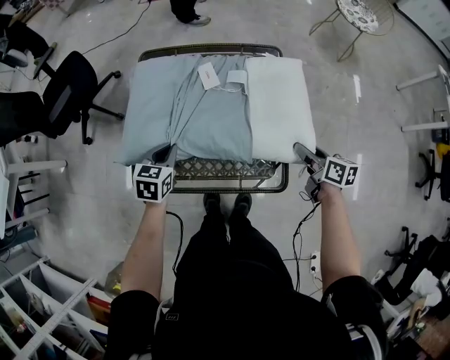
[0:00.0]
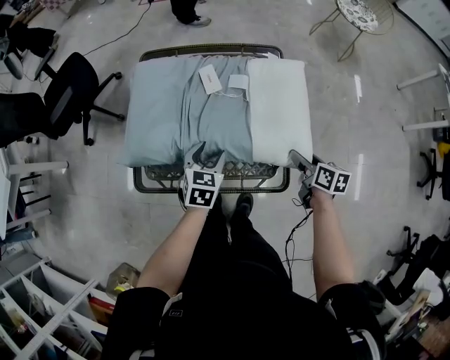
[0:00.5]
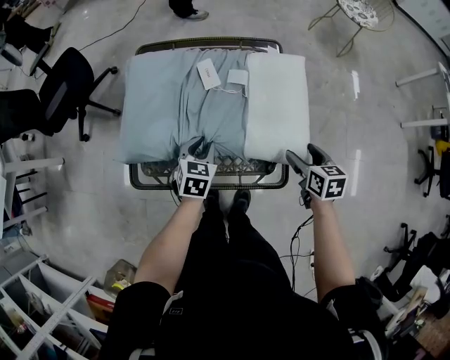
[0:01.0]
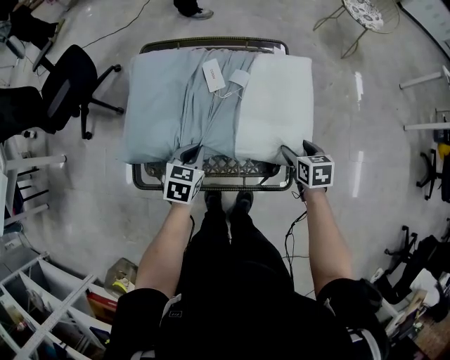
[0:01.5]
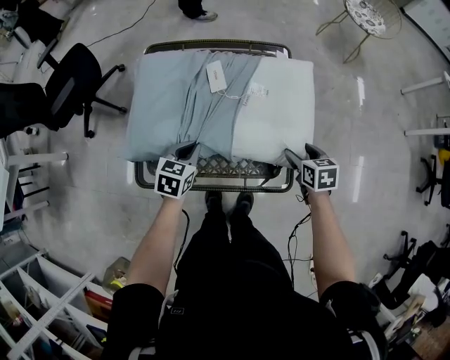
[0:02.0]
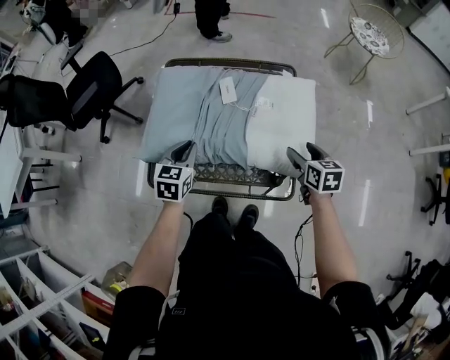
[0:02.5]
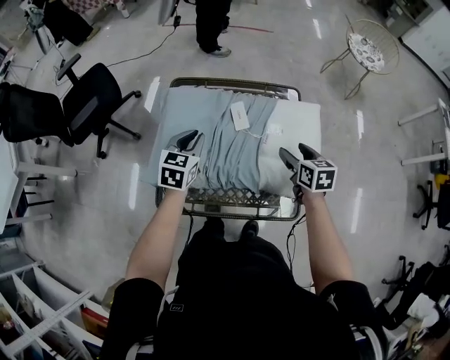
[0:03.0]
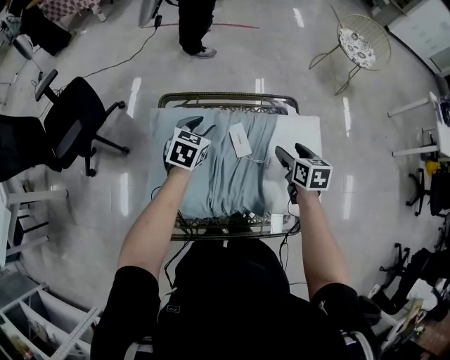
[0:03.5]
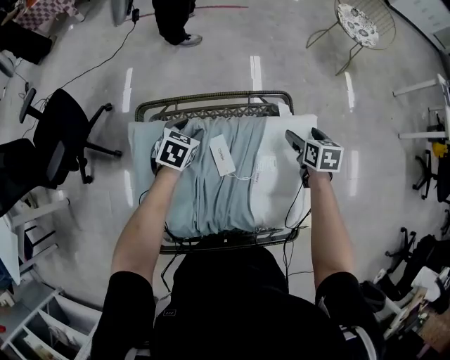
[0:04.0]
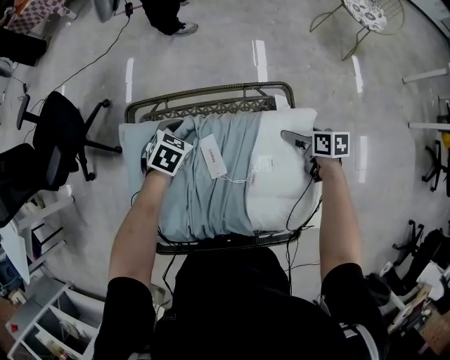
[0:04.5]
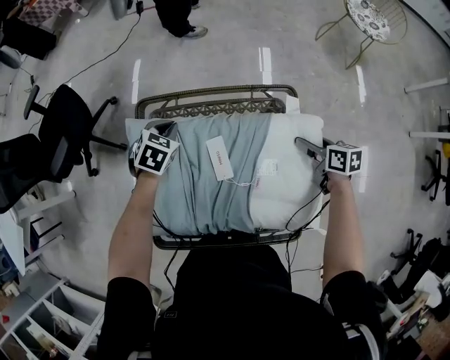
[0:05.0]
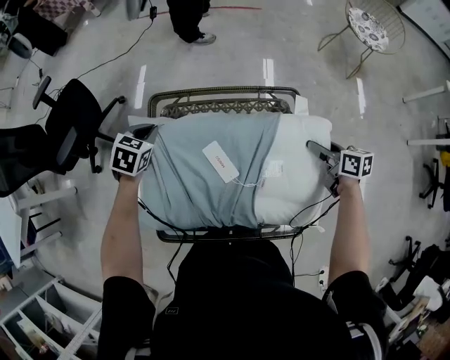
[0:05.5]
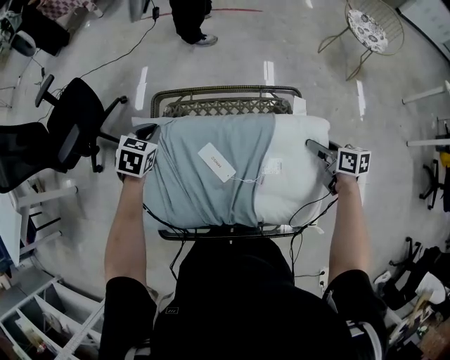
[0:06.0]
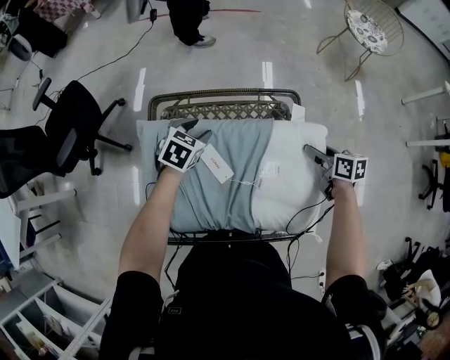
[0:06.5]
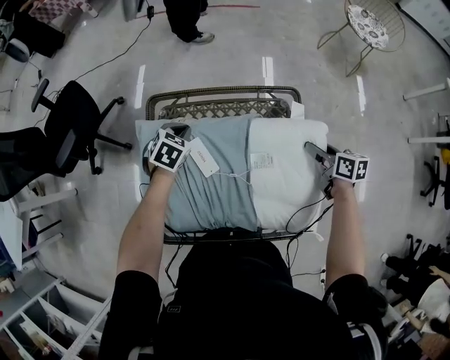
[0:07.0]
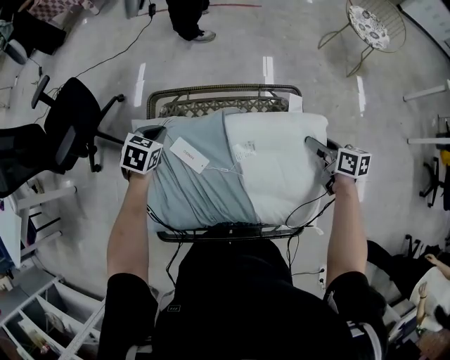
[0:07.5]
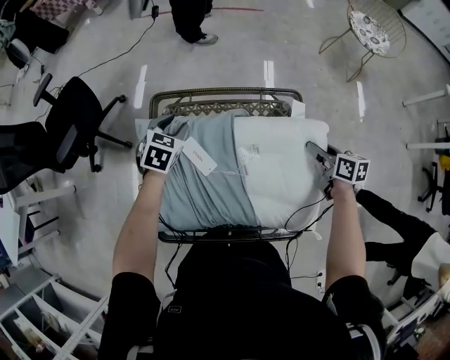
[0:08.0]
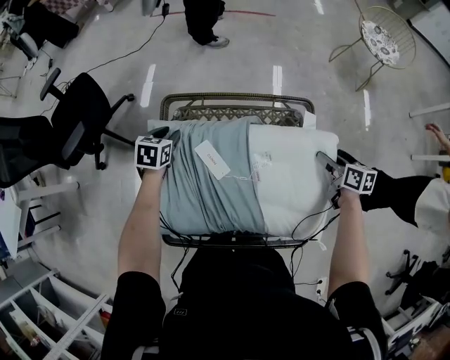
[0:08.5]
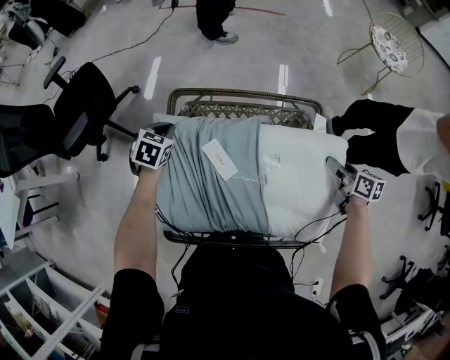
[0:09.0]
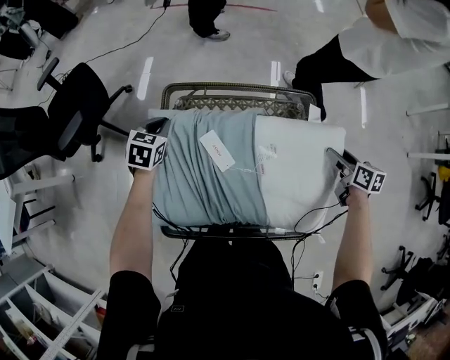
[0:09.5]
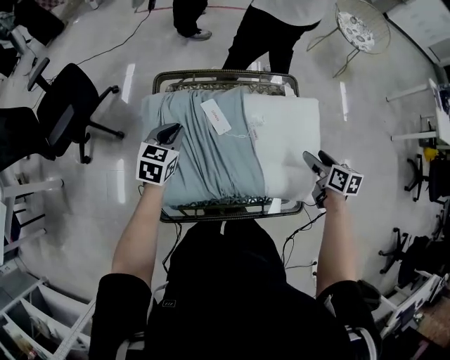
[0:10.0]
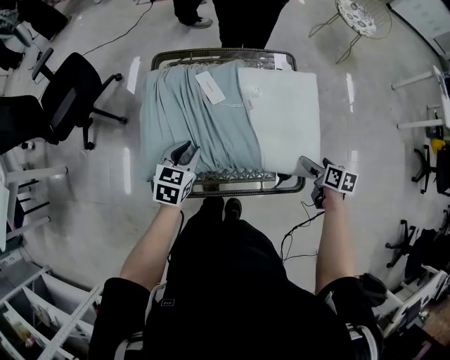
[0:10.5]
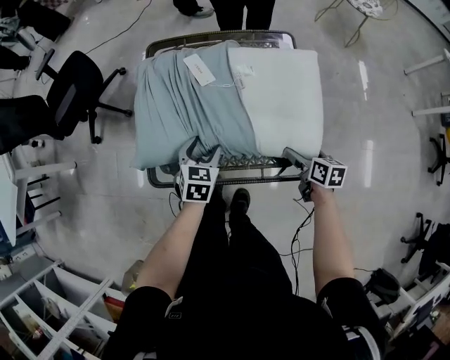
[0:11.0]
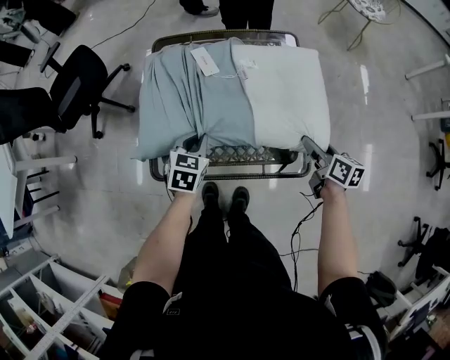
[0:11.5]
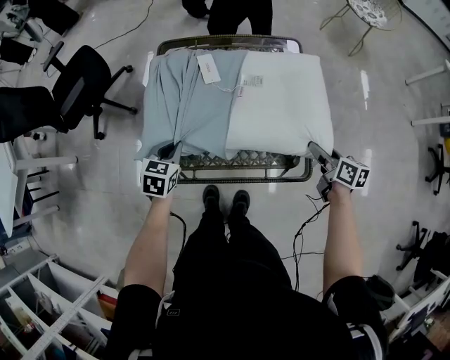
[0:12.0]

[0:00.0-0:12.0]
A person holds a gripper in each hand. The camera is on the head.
0:00.0 to 0:02.0: The left gripper is displaced to the right by approximately 5 cm, and opens, then closes once more. Meanwhile the right gripper ends up about 5 cm from where it was, and rotates some 30 degrees.
0:02.0 to 0:04.0: The two grippers go some 30 cm forward. The left gripper opens up.
0:04.0 to 0:06.0: The left gripper ends up roughly 20 cm from where it was, and closes. The right gripper travels downward and back again, roughly 5 cm each way, rotates some 30 degrees, and closes.
0:06.0 to 0:08.0: The left gripper moves left and right over approximately 15 cm, changing direction 2 times, and opens up.
0:08.0 to 0:10.0: Both grippers move backward, approximately 10 cm. The left gripper closes its fingers. The right gripper opens up.
0:10.0 to 0:12.0: The left gripper heads backward, covering approximately 20 cm, and opens and closes again. Meanwhile the right gripper shifts some 10 cm backward.

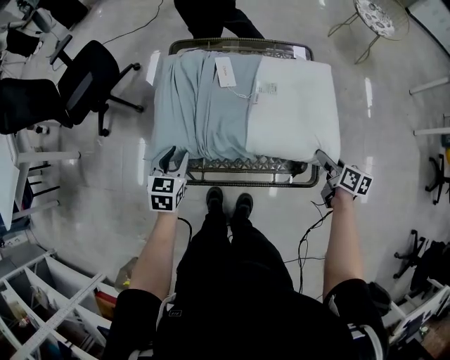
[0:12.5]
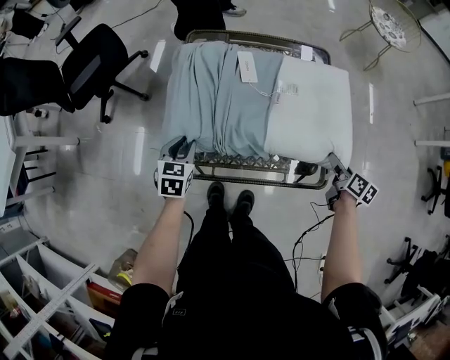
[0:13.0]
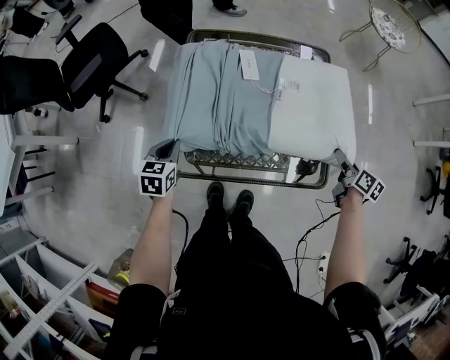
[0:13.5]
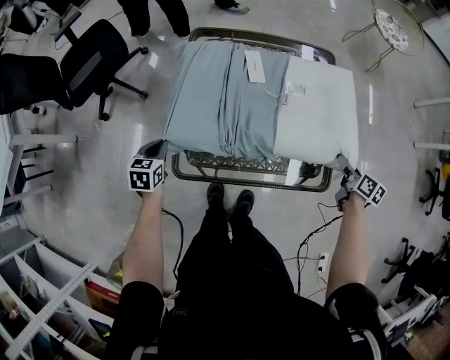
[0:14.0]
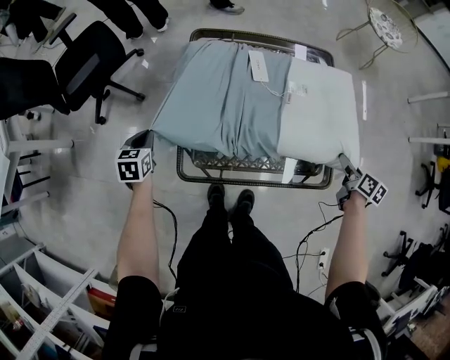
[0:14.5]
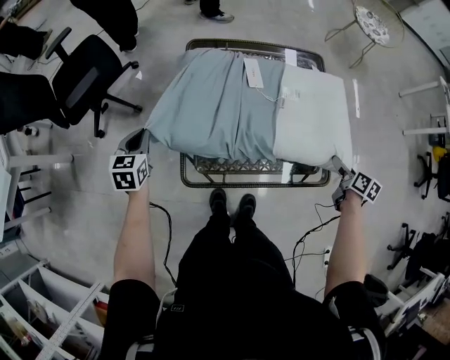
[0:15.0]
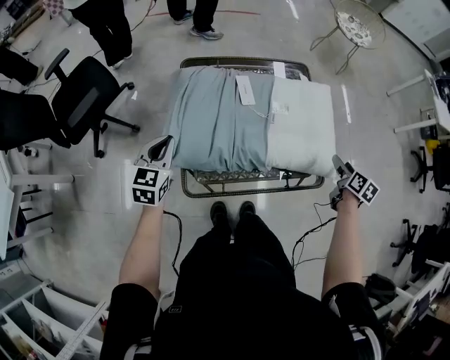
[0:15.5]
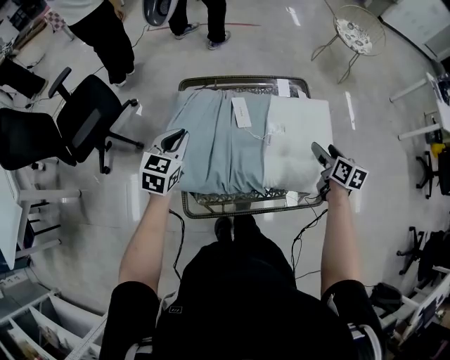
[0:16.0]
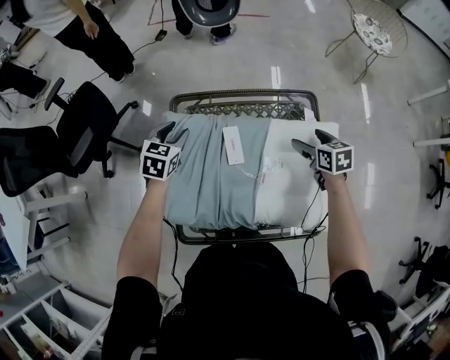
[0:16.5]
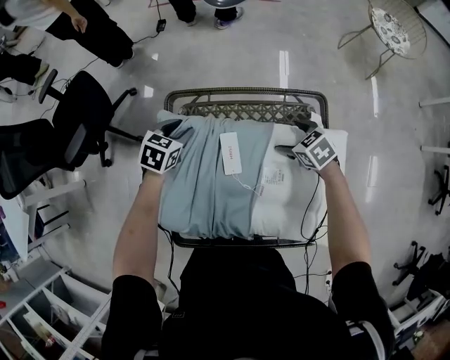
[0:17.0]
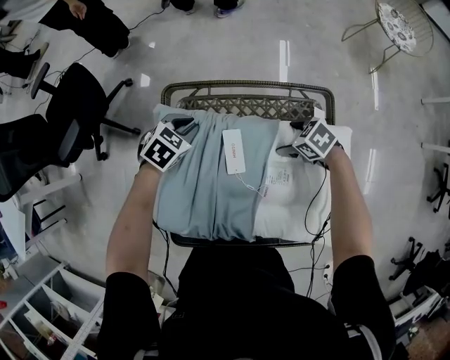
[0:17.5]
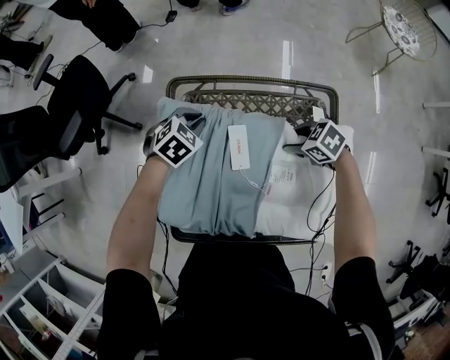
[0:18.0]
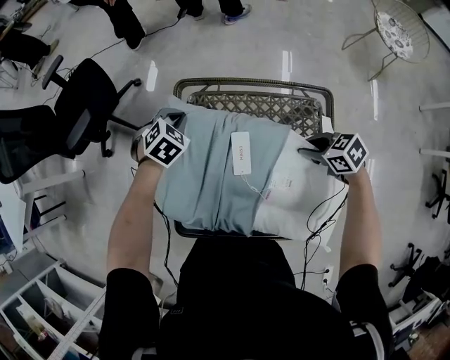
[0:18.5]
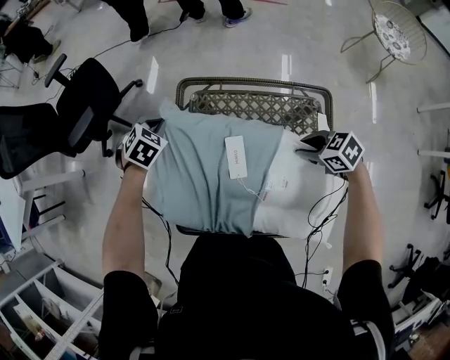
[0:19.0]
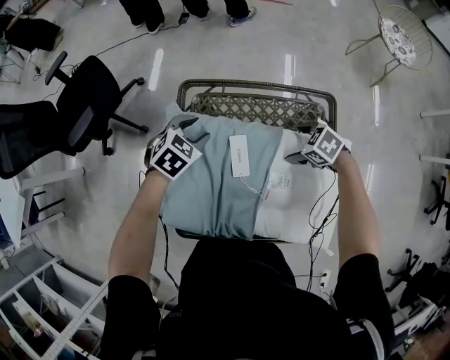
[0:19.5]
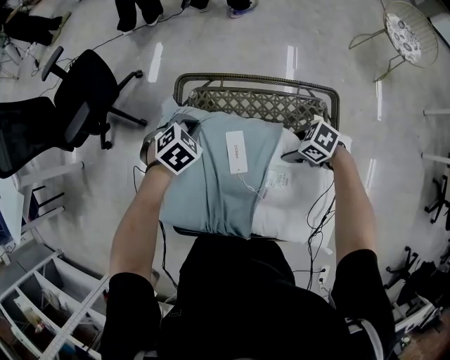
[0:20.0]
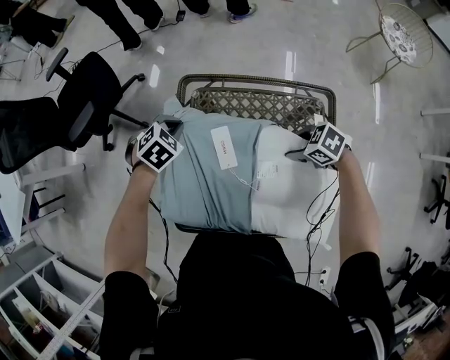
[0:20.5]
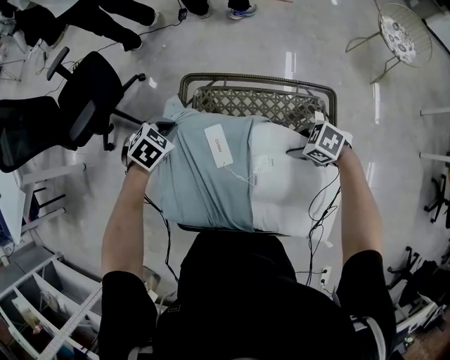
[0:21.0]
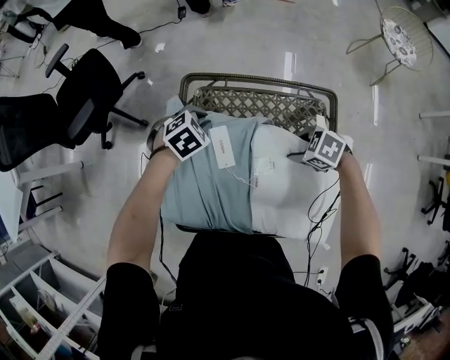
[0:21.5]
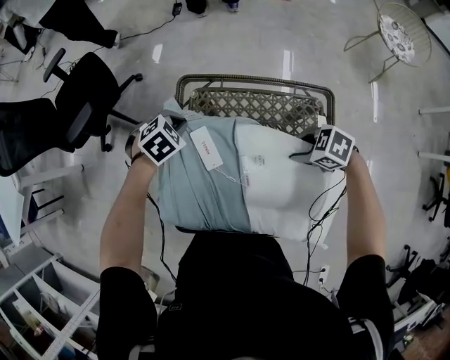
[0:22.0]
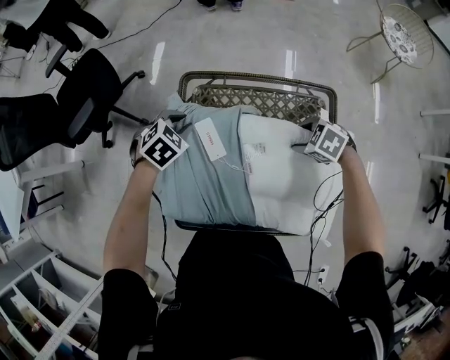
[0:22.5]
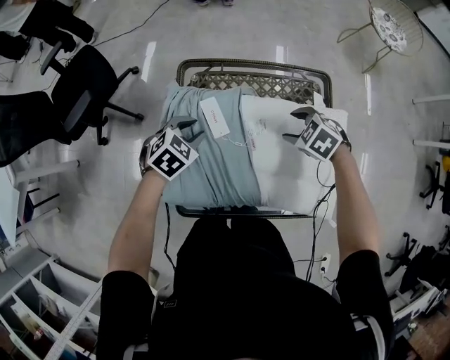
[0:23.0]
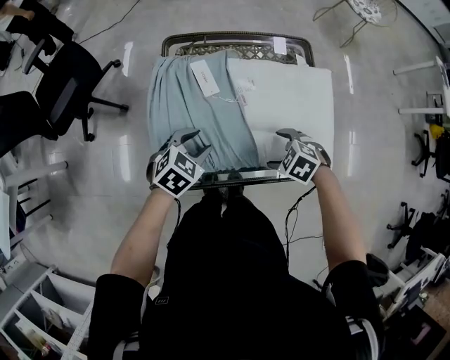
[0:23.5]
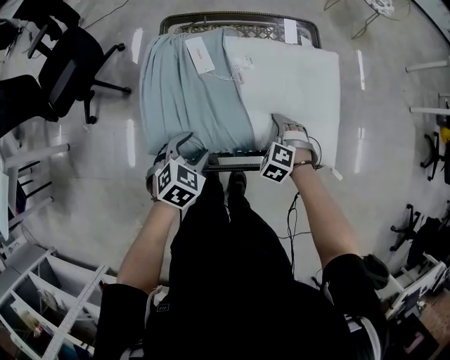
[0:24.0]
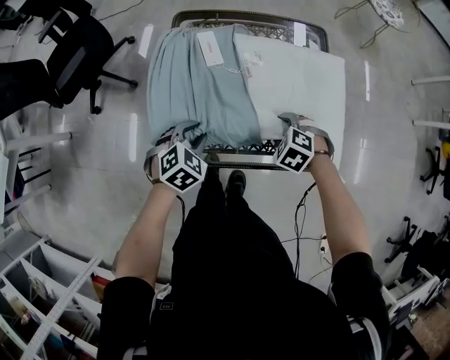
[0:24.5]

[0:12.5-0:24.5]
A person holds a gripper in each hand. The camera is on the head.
0:12.5 to 0:14.5: The left gripper moves to the left, approximately 20 cm, and closes its fingers.
0:14.5 to 0:16.5: The left gripper travels forward and to the right by roughly 30 cm, rotates approximately 20 degrees, and opens, while the right gripper heads forward and to the left, covering about 30 cm, rotates about 30 degrees, and opens.
0:16.5 to 0:18.5: The right gripper moves roughly 10 cm downward and comes back, rotates some 40 degrees, and closes. The left gripper swivels some 30 degrees, and closes its fingers.
0:18.5 to 0:20.5: The left gripper opens and closes again. The right gripper opens, then closes once more.
0:22.5 to 0:24.5: The right gripper travels downward and back again, about 10 cm each way, swivels approximately 20 degrees, and opens, then closes again; the left gripper shifts by some 30 cm.

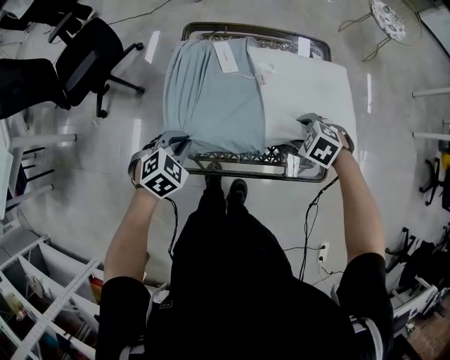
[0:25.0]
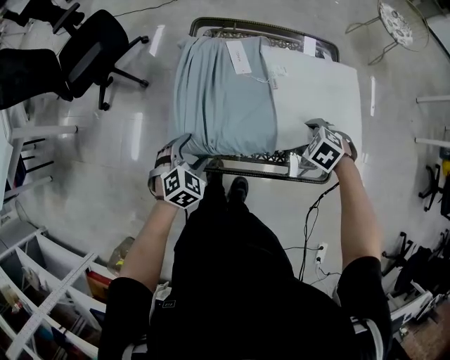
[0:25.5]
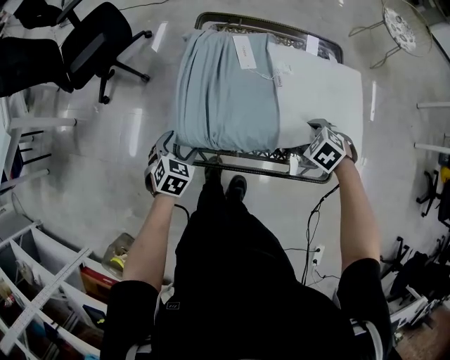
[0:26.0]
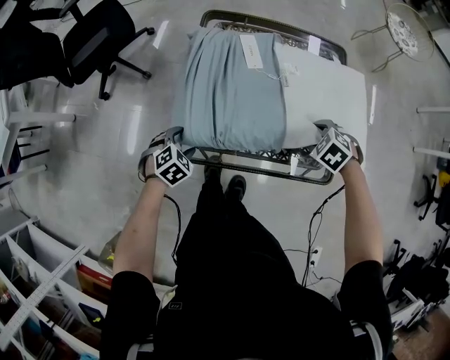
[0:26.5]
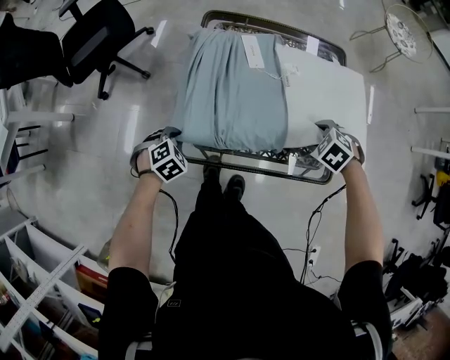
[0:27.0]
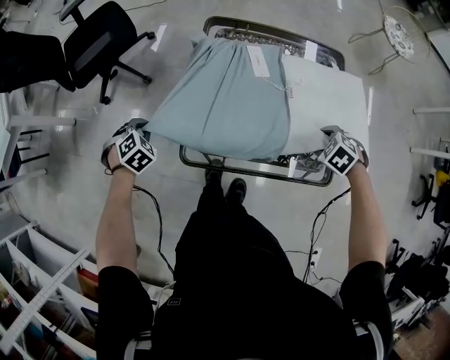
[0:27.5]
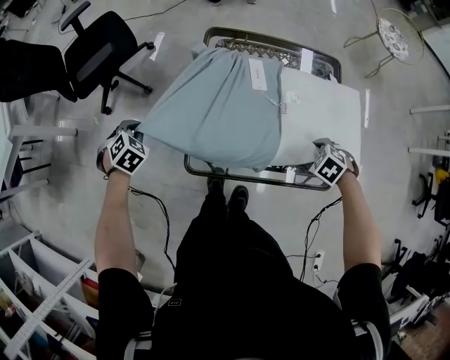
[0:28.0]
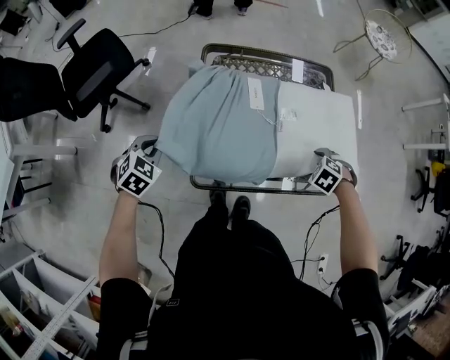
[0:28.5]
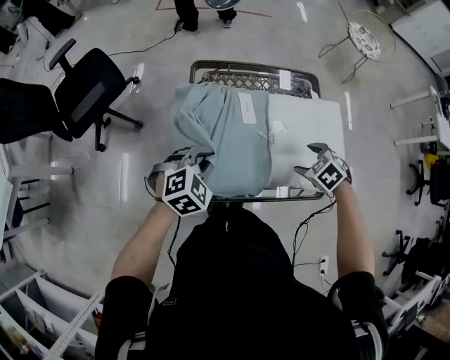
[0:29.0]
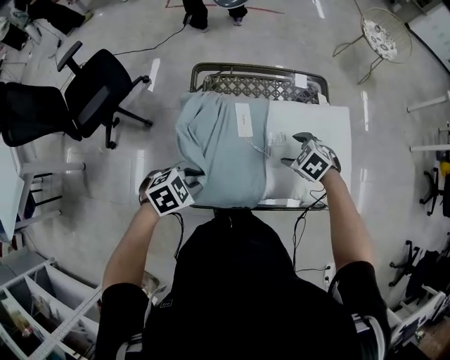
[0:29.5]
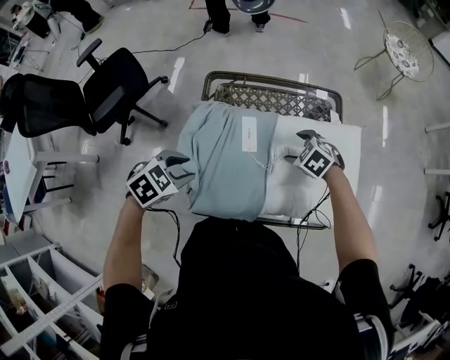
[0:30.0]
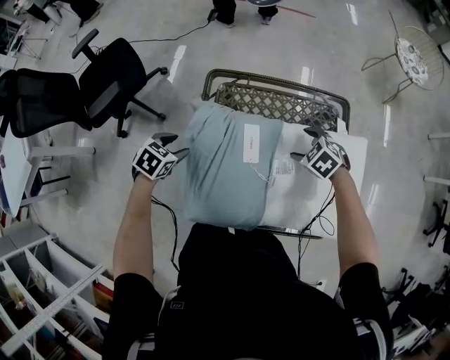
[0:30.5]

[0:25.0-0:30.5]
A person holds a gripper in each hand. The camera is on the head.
0:25.0 to 0:27.0: The left gripper goes approximately 10 cm downward, and opens, then closes again.
0:27.0 to 0:28.5: The left gripper moves upward, approximately 15 cm.
0:28.5 to 0:30.5: The right gripper moves some 25 cm, and turns by approximately 20 degrees. The left gripper swings up and down, about 10 cm each way, with 3 reversals, swivels about 20 degrees, and opens.
